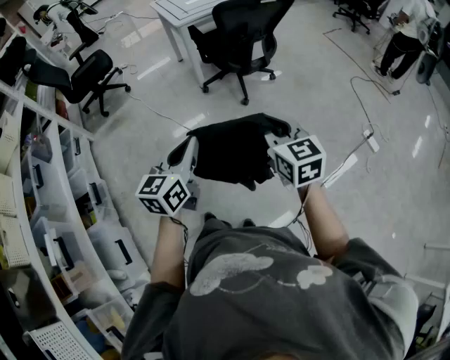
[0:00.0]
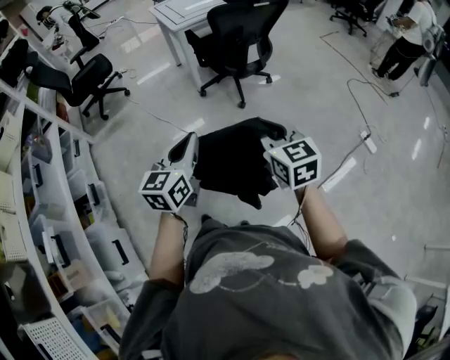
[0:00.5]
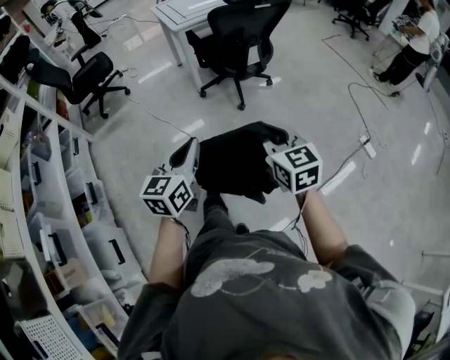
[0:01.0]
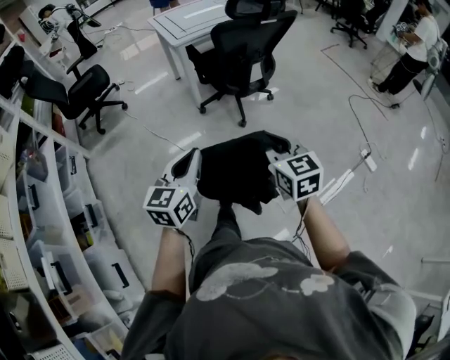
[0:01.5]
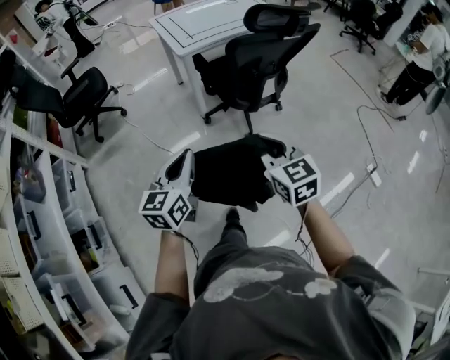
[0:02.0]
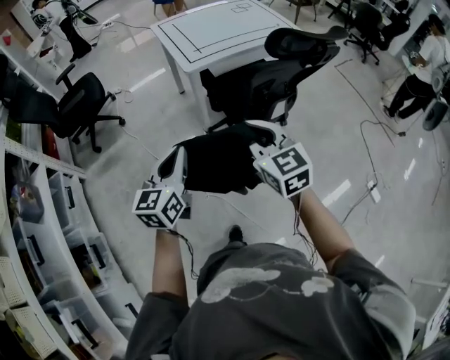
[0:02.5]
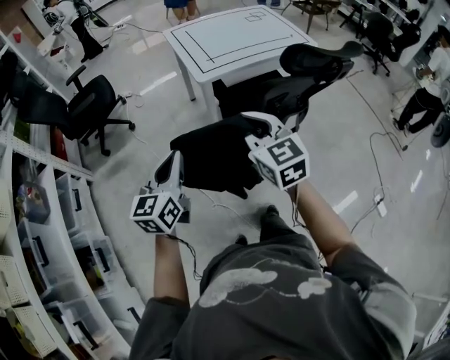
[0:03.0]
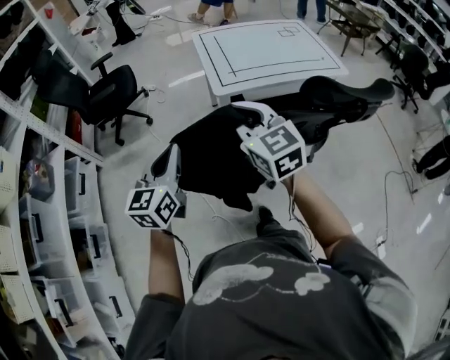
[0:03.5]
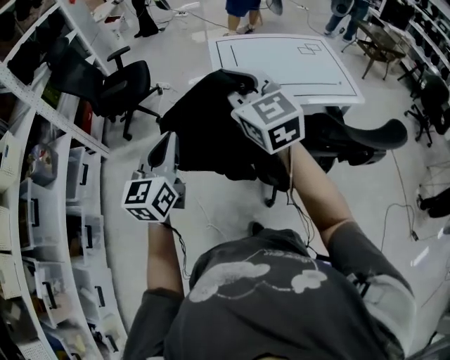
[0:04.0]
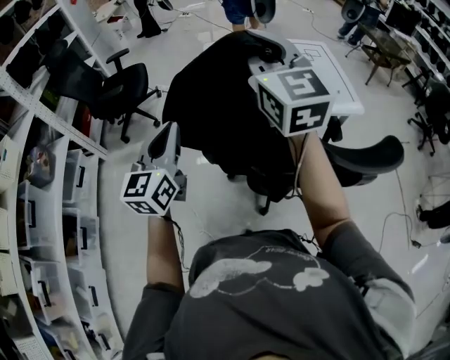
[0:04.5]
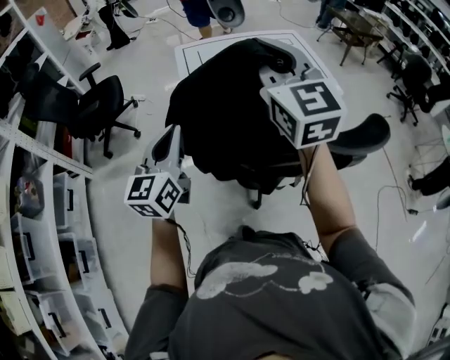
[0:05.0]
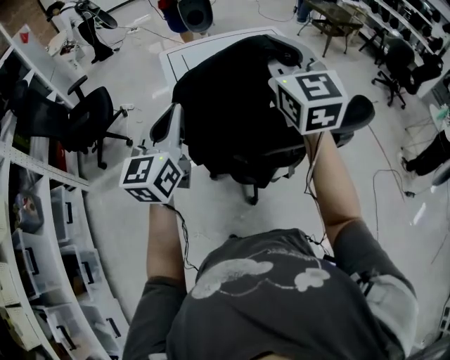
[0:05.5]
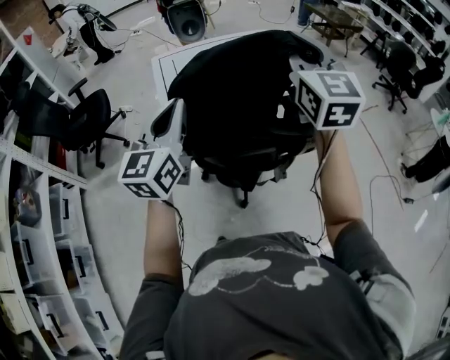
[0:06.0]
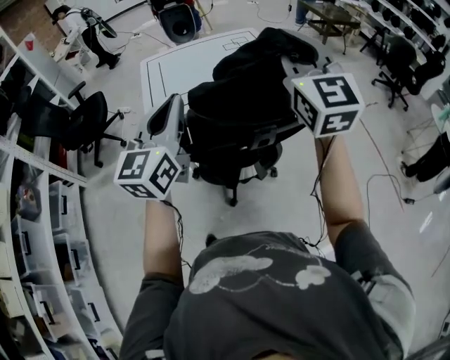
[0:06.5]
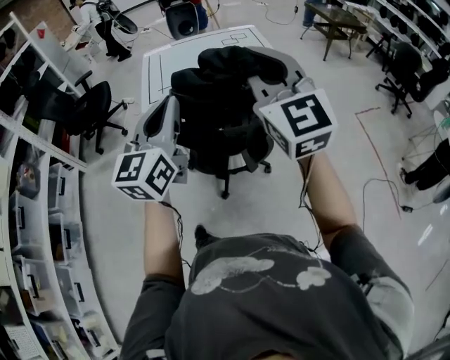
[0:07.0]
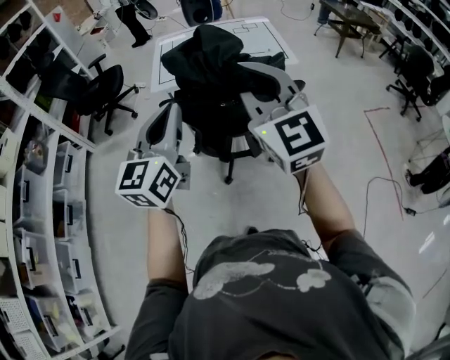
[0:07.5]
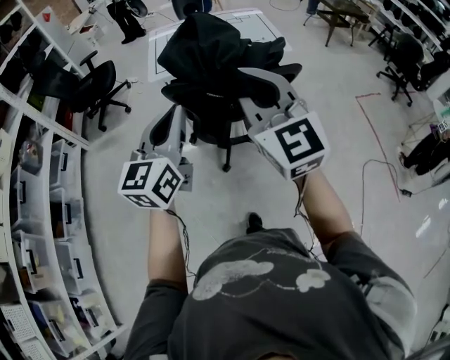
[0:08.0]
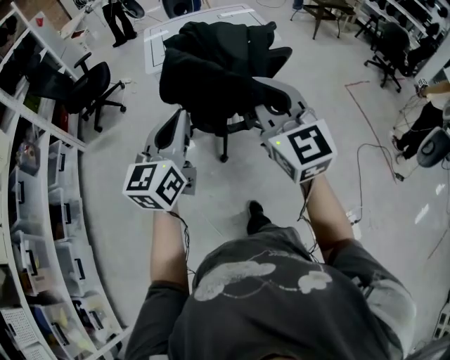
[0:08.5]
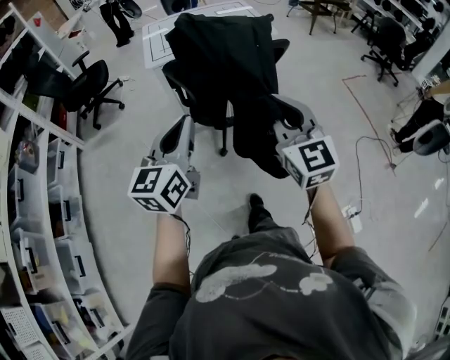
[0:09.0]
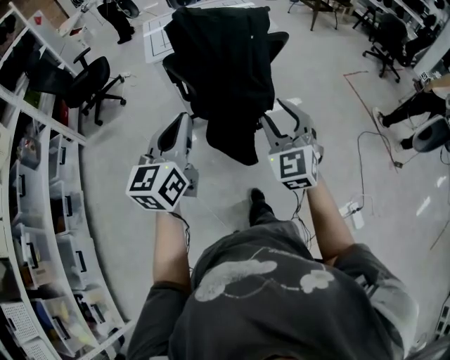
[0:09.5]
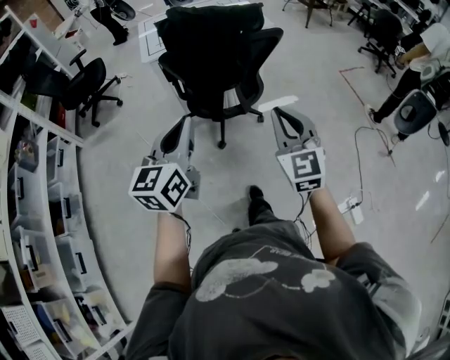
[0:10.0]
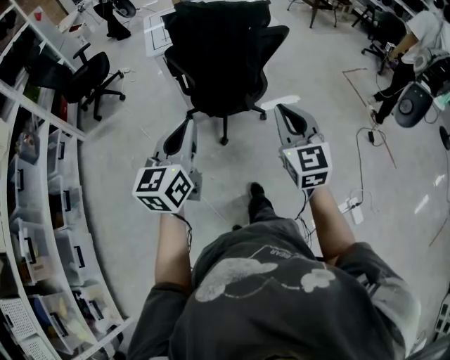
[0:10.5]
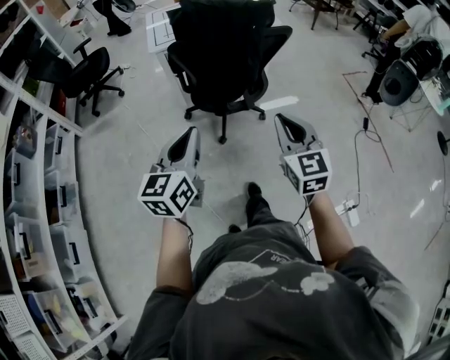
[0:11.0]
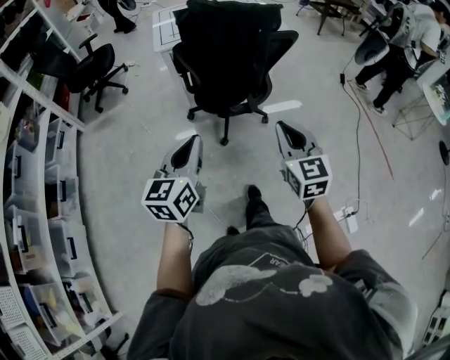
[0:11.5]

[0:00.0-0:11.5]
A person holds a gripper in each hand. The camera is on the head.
0.0 to 2.0 s: The two grippers go about 25 cm forward.
2.0 to 4.0 s: The left gripper moves roughly 35 cm, and changes its angle by roughly 30 degrees; the right gripper ends up some 50 cm from where it was, and rotates some 40 degrees.
4.0 to 6.0 s: The two grippers go some 30 cm to the right. The right gripper rotates roughly 30 degrees.
6.0 to 7.5 s: The left gripper travels backward and to the right by about 30 cm; the right gripper shifts about 25 cm backward, and turns by some 20 degrees.
7.5 to 9.5 s: The right gripper is displaced backward and downward by some 25 cm, turns by roughly 30 degrees, and opens up, while the left gripper moves backward, about 20 cm.
9.5 to 11.5 s: The left gripper shifts some 10 cm downward and backward; the right gripper changes place by roughly 5 cm, rotates approximately 20 degrees, and closes its fingers.

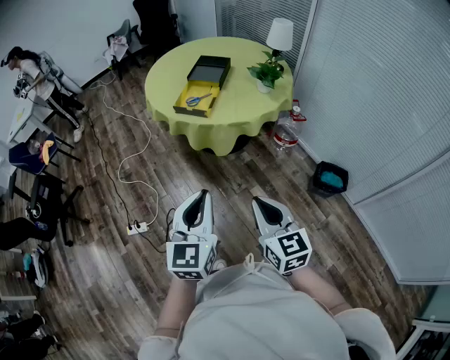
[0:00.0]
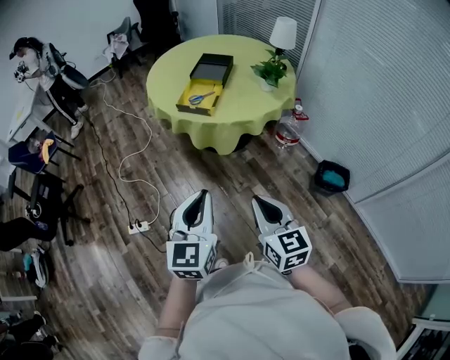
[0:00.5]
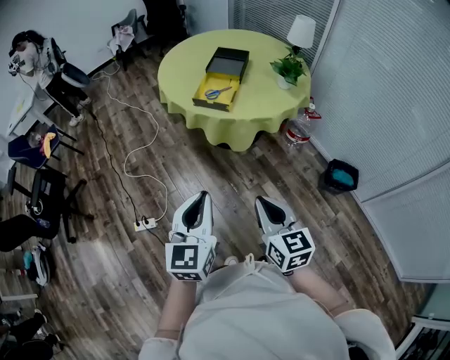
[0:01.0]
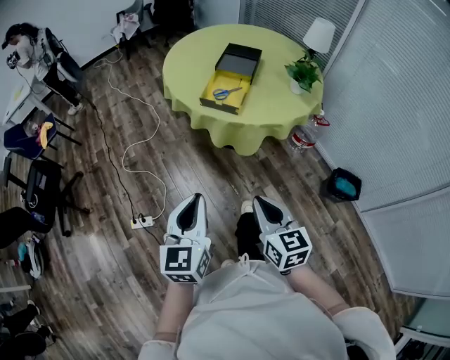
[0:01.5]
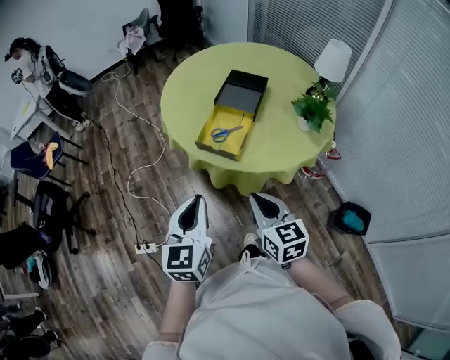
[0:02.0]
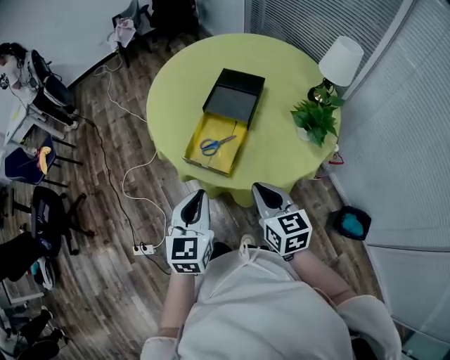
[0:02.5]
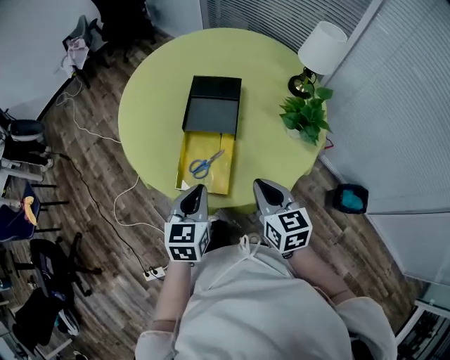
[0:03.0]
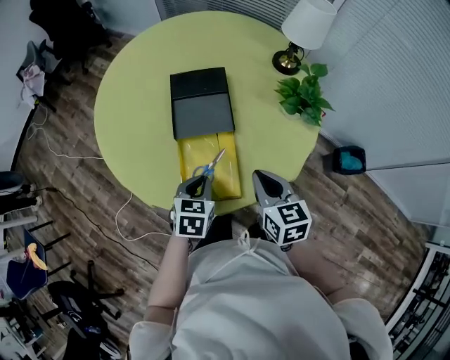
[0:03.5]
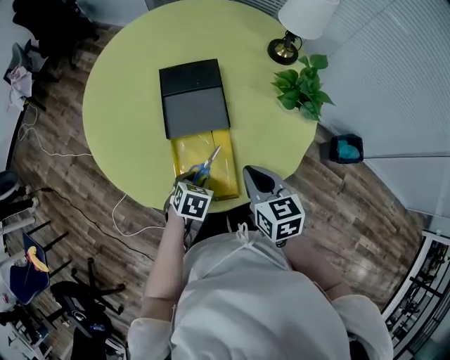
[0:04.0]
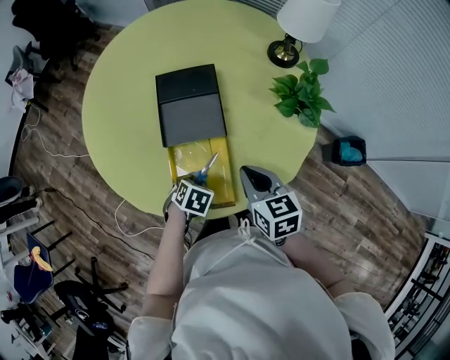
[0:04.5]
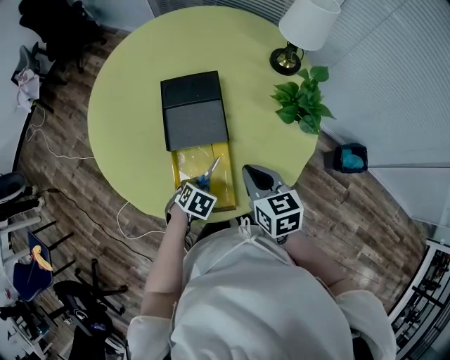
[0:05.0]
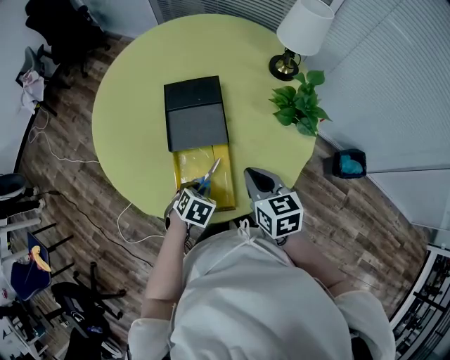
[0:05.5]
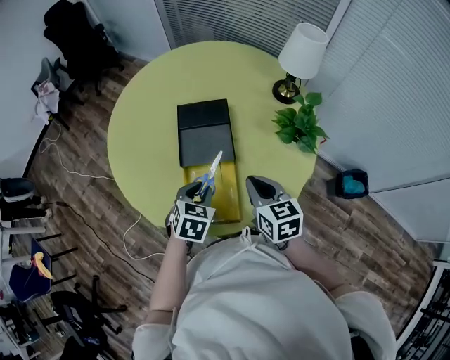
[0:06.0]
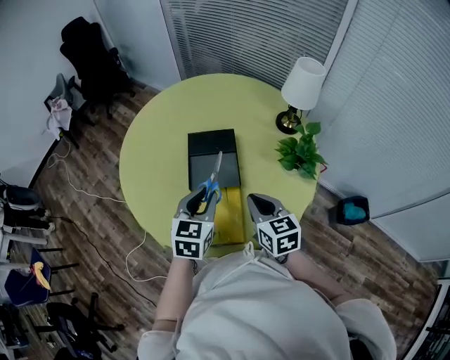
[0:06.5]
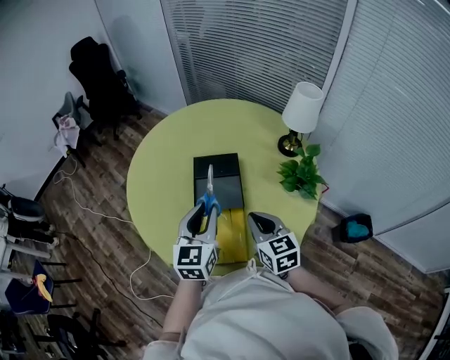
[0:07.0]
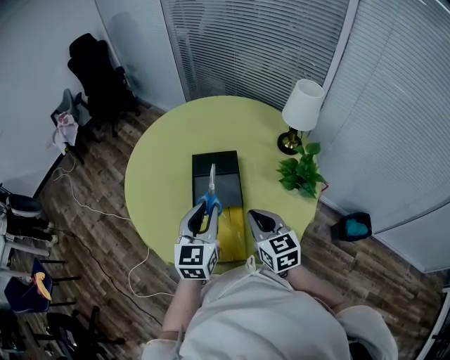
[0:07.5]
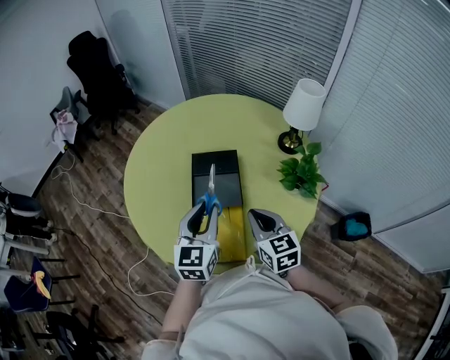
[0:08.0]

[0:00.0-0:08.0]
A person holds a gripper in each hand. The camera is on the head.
0.0 to 2.0 s: The two grippers go approximately 35 cm forward.
2.0 to 4.0 s: The left gripper ends up roughly 50 cm from where it was, tips its fingers downward by about 60 degrees, and opens its fingers, while the right gripper moves about 35 cm, and turns by some 30 degrees.
4.0 to 6.0 s: The right gripper shifts by about 5 cm. Meanwhile the left gripper travels upward by approximately 15 cm.
6.0 to 8.0 s: The right gripper is displaced upward by approximately 5 cm, while the left gripper shifts some 15 cm upward, and tips its fingers upward by approximately 40 degrees.

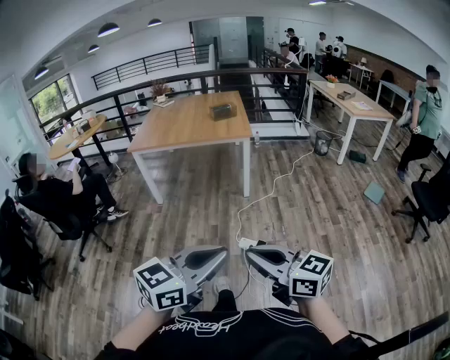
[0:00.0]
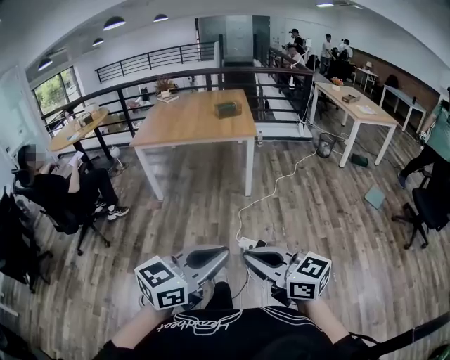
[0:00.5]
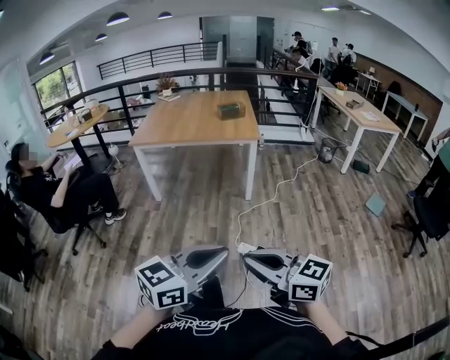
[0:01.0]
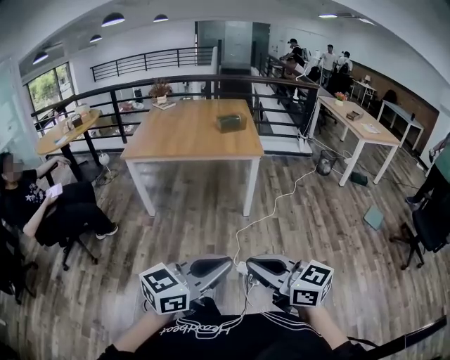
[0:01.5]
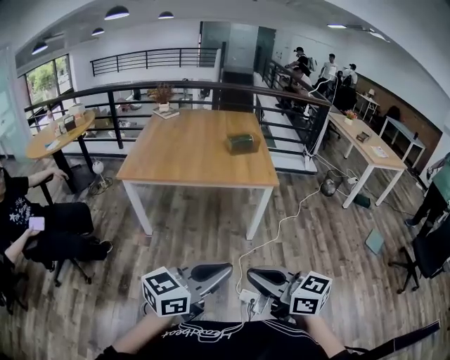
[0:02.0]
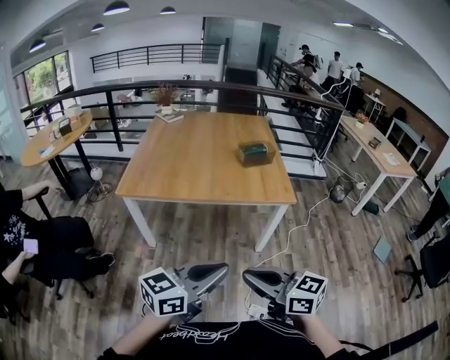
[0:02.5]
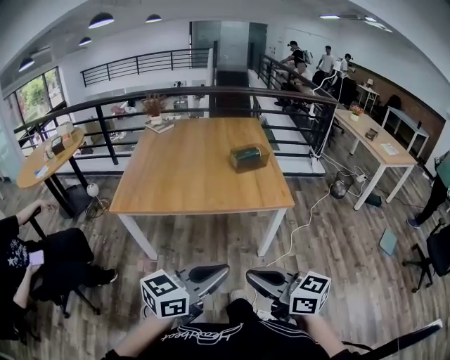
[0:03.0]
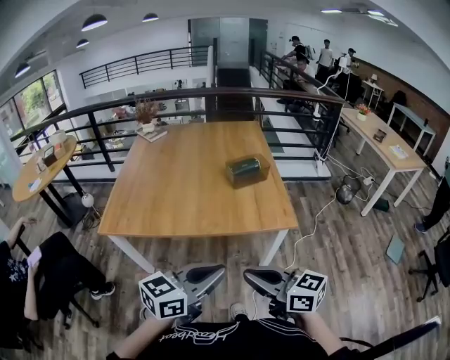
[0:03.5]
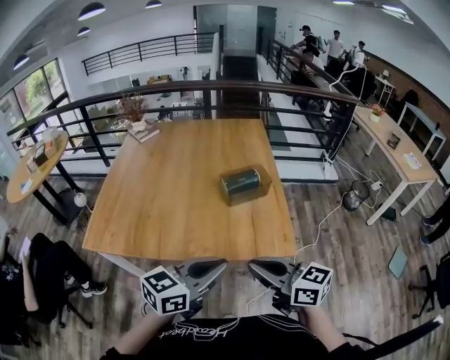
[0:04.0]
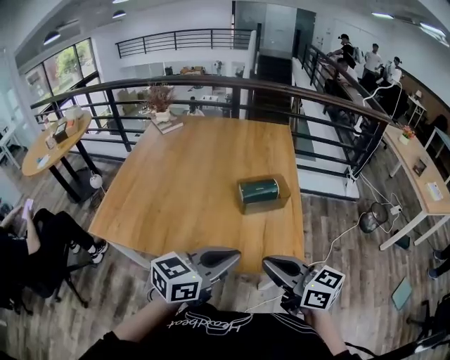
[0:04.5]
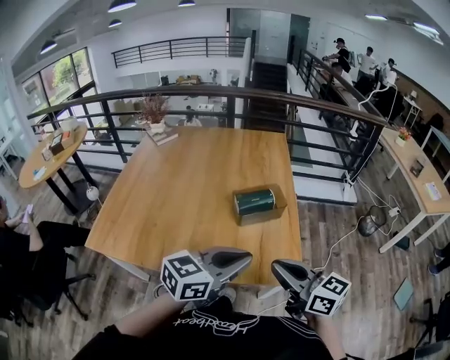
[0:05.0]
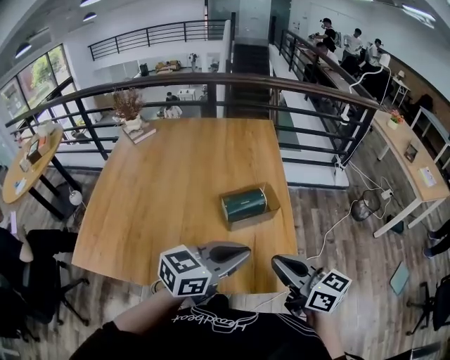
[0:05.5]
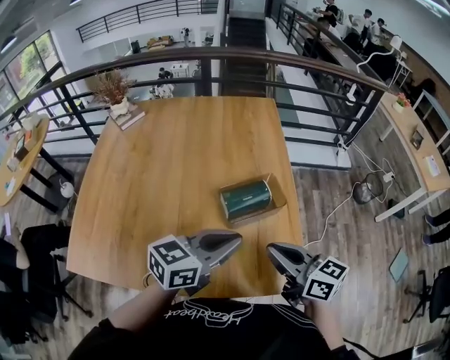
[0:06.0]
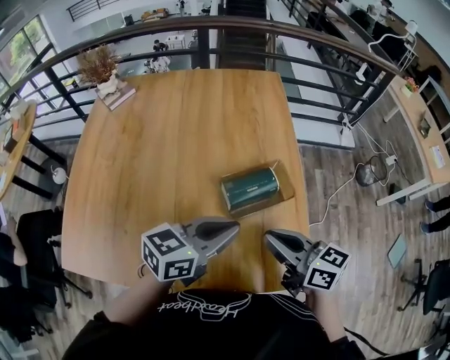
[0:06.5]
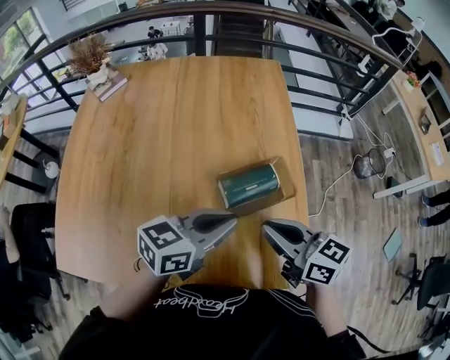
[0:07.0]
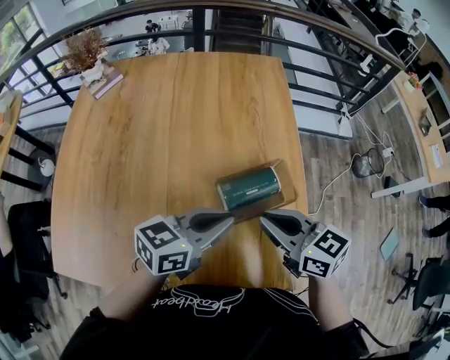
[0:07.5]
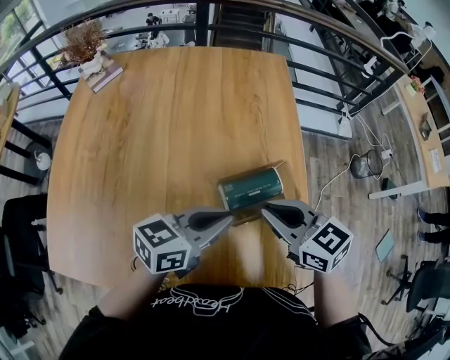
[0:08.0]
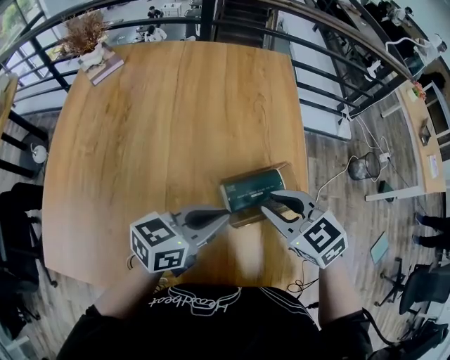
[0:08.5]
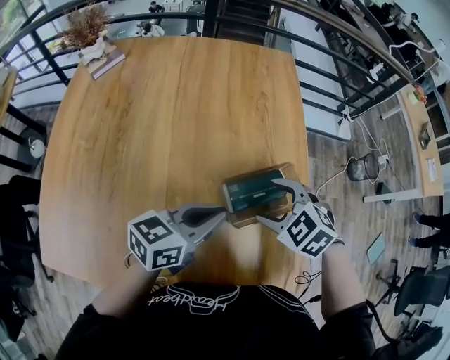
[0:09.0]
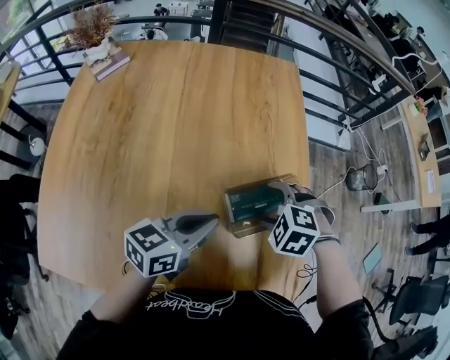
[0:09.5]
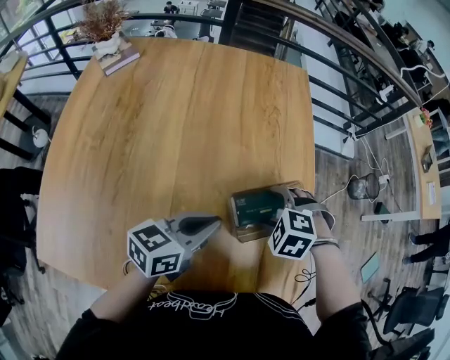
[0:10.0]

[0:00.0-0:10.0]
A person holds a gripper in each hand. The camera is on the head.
0.0 to 2.0 s: Both grippers are carried forward and to the left, approximately 50 cm.
2.0 to 4.0 s: The pair of grippers is taken forward, about 60 cm.
4.0 to 6.0 s: The grippers both shift forward by roughly 30 cm.
6.0 to 8.0 s: The right gripper moves forward and to the left, some 15 cm, and changes its angle by roughly 30 degrees. The left gripper shifts approximately 15 cm forward, downward and to the left.
8.0 to 10.0 s: The right gripper is displaced downward by some 15 cm, points its fingers some 50 degrees further downward, and opens its fingers; the left gripper shifts by some 10 cm.
